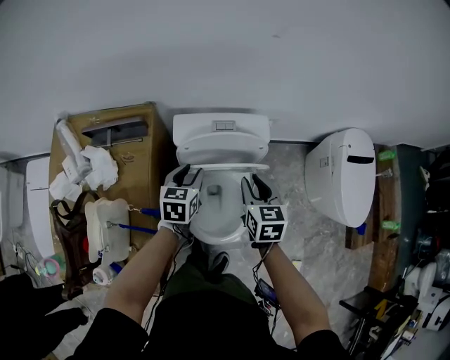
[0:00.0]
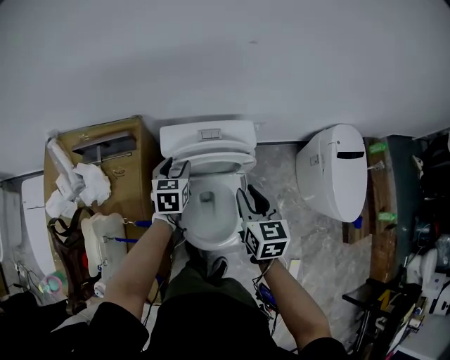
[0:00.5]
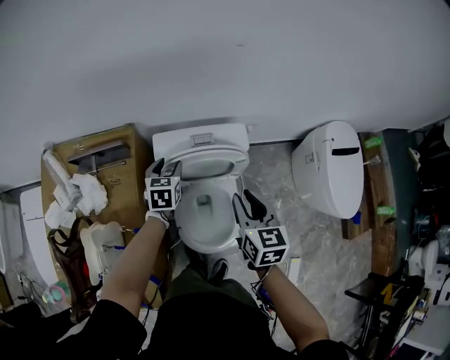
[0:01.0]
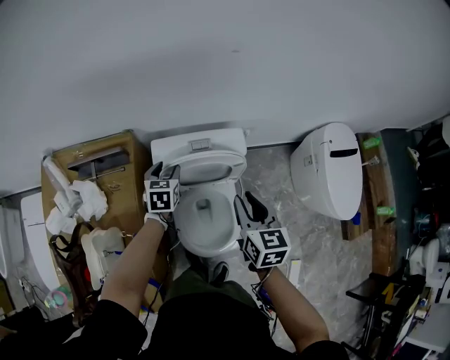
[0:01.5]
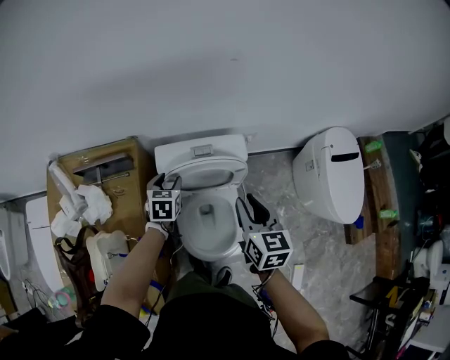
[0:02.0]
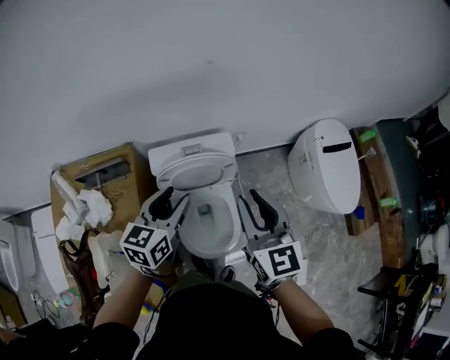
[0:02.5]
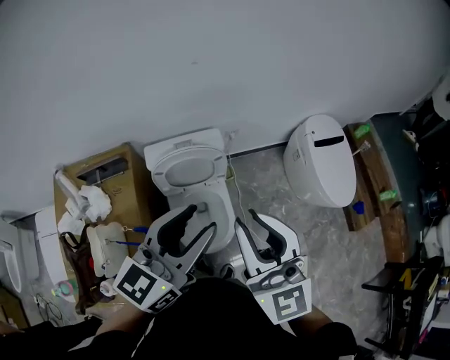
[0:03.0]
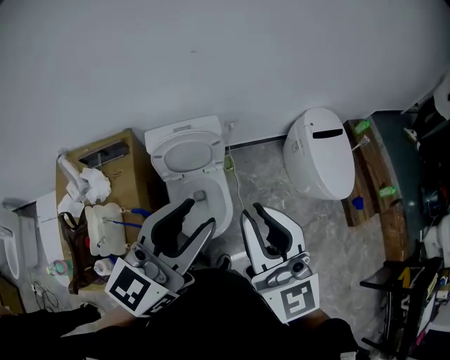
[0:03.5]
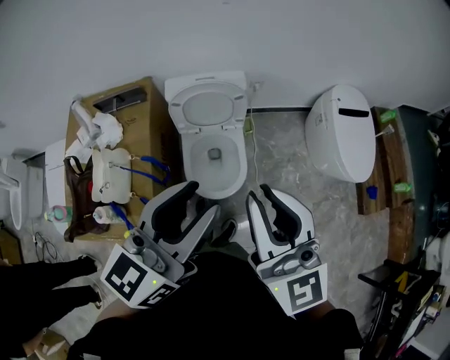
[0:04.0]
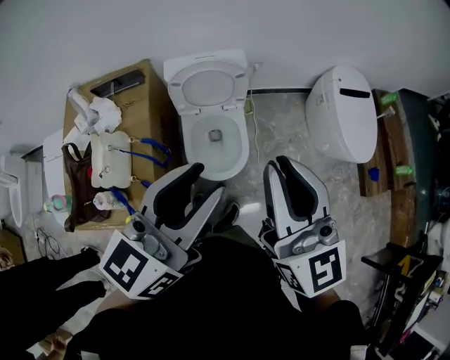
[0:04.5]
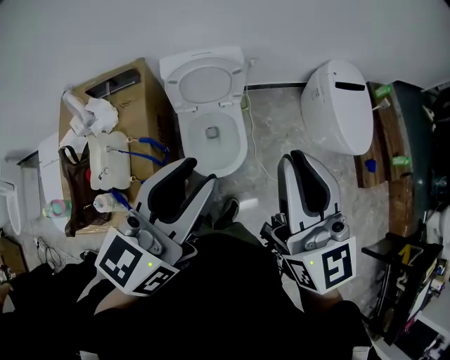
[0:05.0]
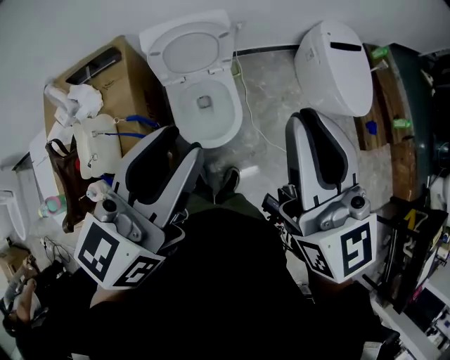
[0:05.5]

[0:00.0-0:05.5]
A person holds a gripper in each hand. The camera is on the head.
0:00.0 to 0:02.0: The left gripper travels forward by roughly 5 cm; the right gripper goes roughly 10 cm upward.
0:02.0 to 0:03.5: The left gripper goes roughly 60 cm upward, backward and to the right, and angles its fingers upward, by some 50 degrees, while the right gripper shifts roughly 35 cm upward and backward, and tips its fingers upward by roughly 40 degrees.
0:03.5 to 0:05.5: The right gripper is displaced backward by approximately 5 cm, while the left gripper shifts about 10 cm backward and downward.

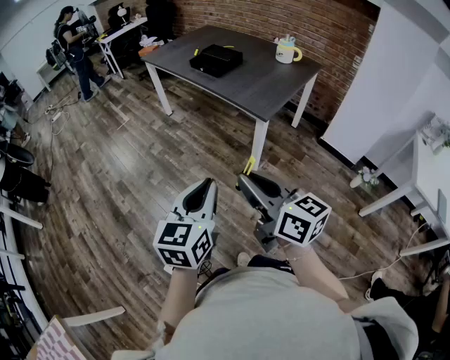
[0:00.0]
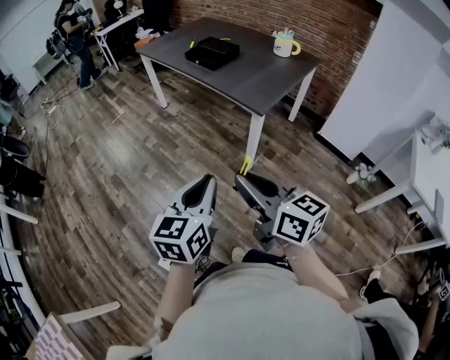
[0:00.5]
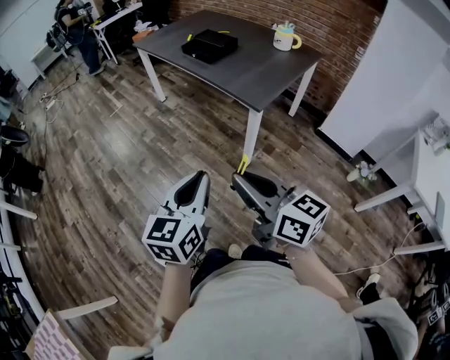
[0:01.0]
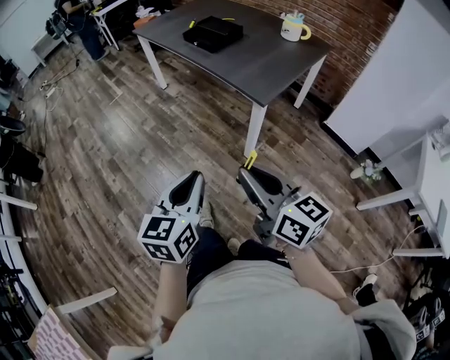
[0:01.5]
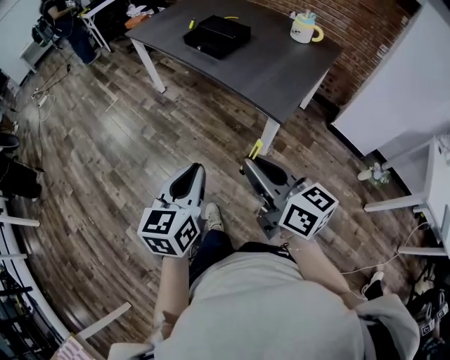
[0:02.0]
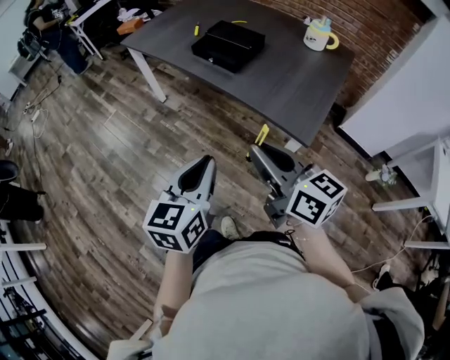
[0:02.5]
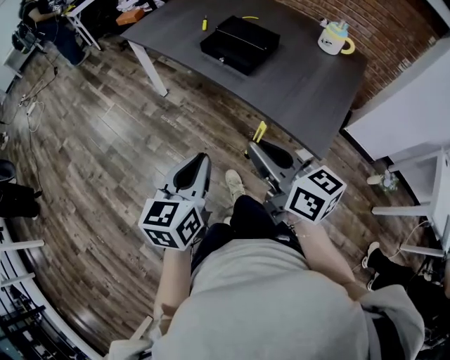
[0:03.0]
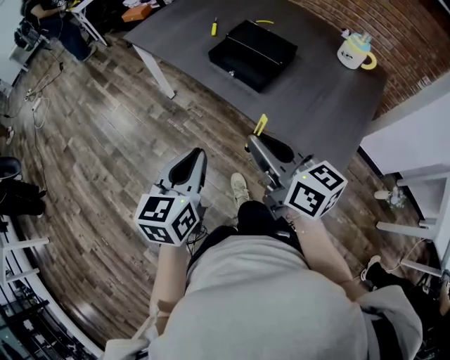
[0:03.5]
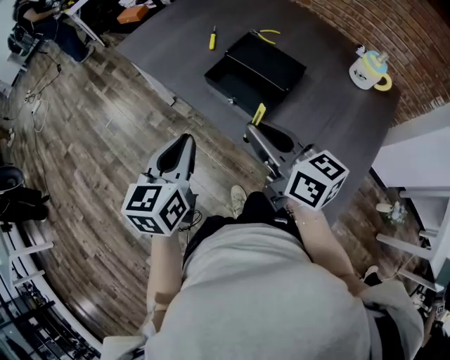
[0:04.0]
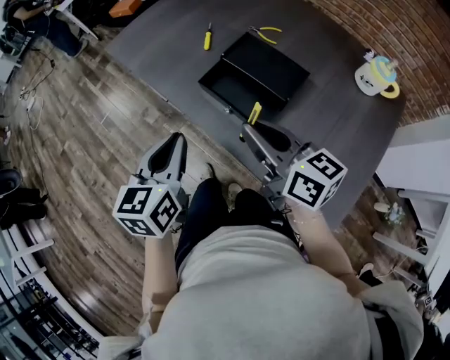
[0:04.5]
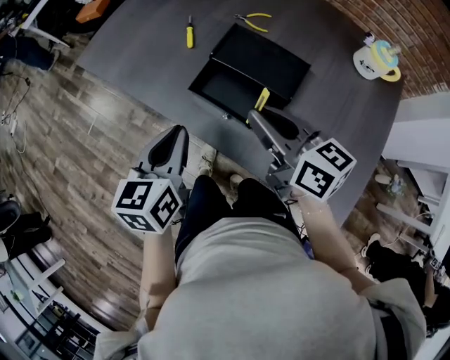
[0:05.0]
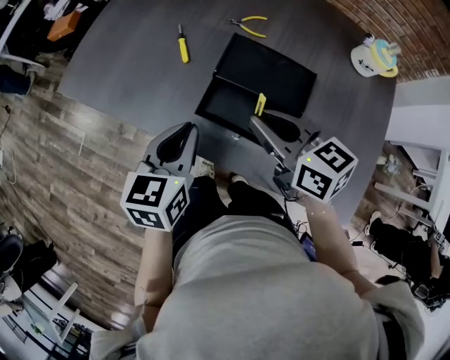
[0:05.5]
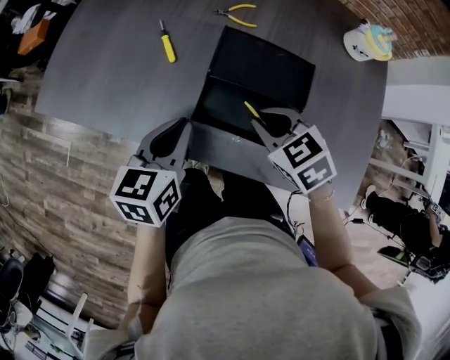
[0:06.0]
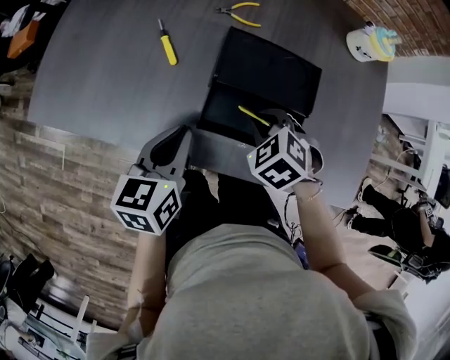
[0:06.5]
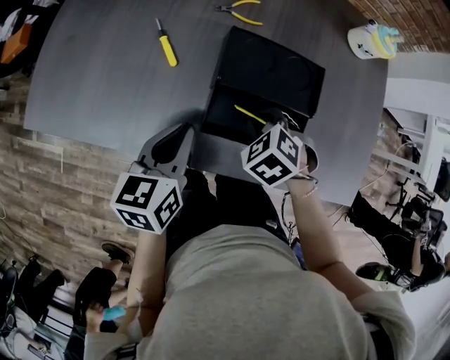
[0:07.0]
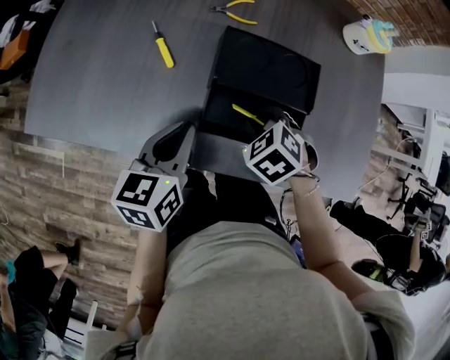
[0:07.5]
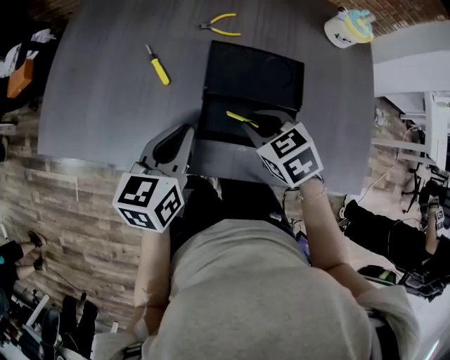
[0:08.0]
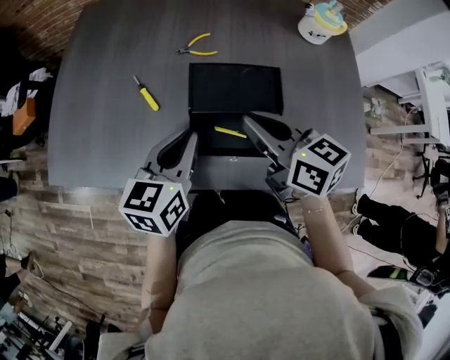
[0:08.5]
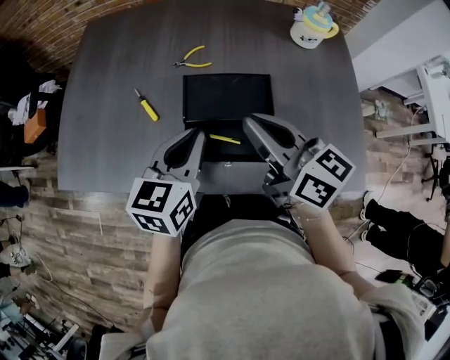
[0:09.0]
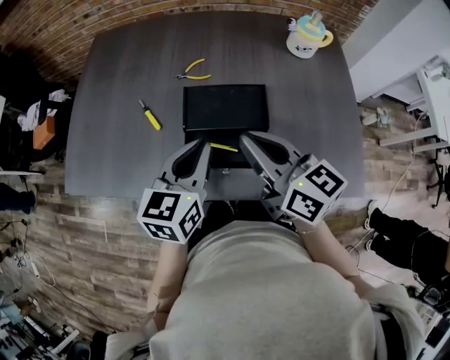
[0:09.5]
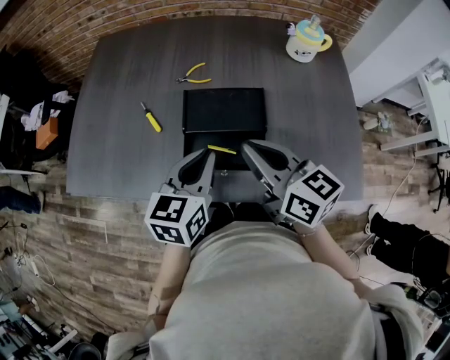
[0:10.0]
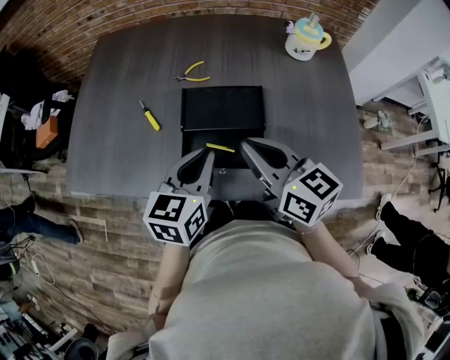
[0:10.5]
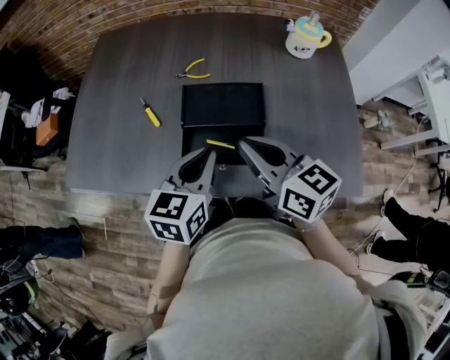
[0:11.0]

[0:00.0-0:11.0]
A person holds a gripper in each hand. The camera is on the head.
0:00.0 to 0:02.0: Both grippers travel together forward, roughly 20 cm.
0:02.0 to 0:03.5: The two grippers go about 35 cm forward.
0:03.5 to 0:05.5: Both grippers move forward, some 35 cm. The left gripper rotates roughly 20 degrees.
0:05.5 to 0:07.5: The left gripper shifts by approximately 10 cm. Meanwhile the right gripper is displaced downward by roughly 15 cm, and angles its fingers downward, by roughly 50 degrees.
0:07.5 to 0:09.0: The left gripper shifts some 15 cm upward and to the right. The right gripper shifts approximately 25 cm upward, and angles its fingers upward, by approximately 70 degrees.
0:09.0 to 0:11.0: The right gripper moves approximately 5 cm. Meanwhile the left gripper ends up approximately 5 cm from where it was.

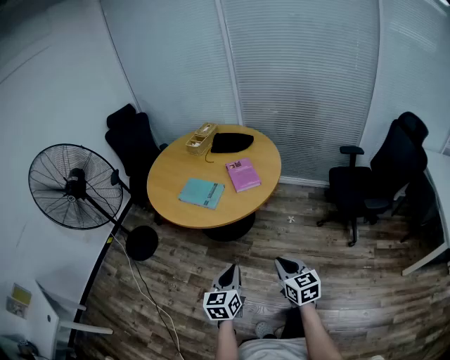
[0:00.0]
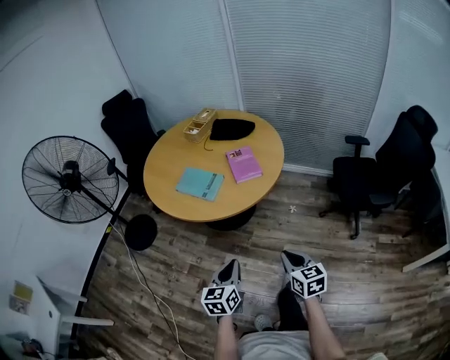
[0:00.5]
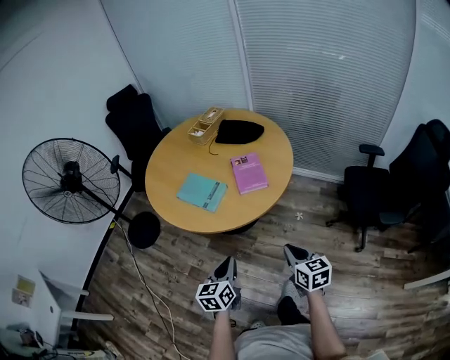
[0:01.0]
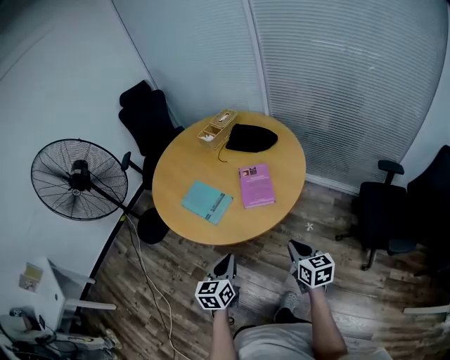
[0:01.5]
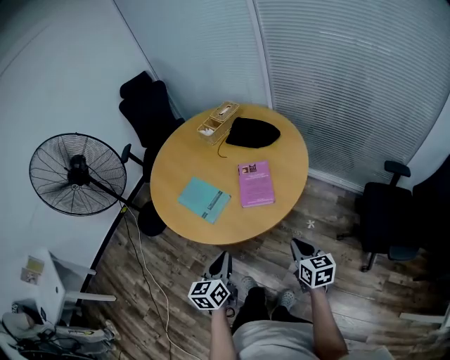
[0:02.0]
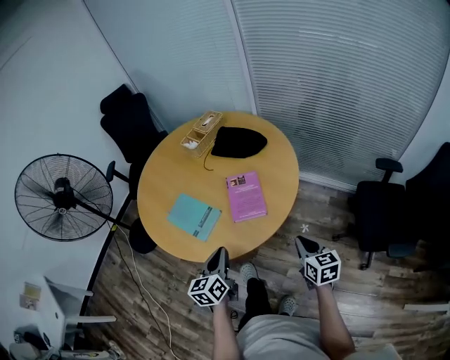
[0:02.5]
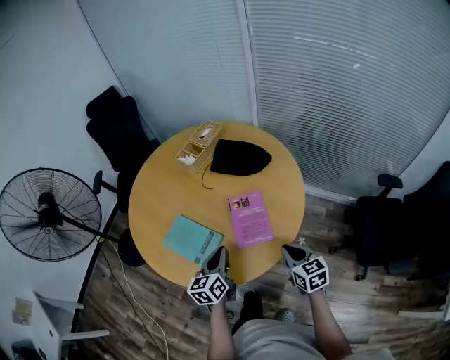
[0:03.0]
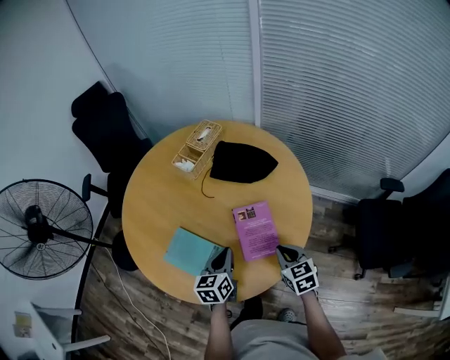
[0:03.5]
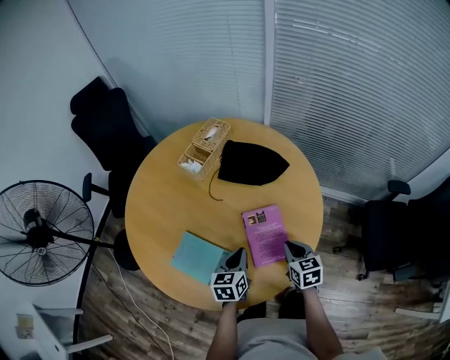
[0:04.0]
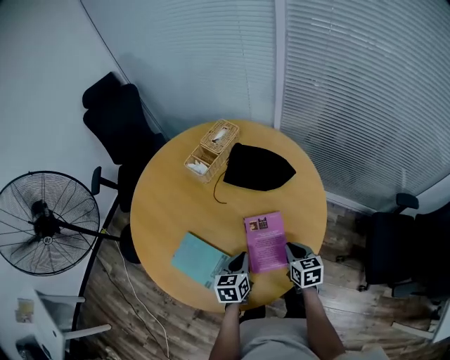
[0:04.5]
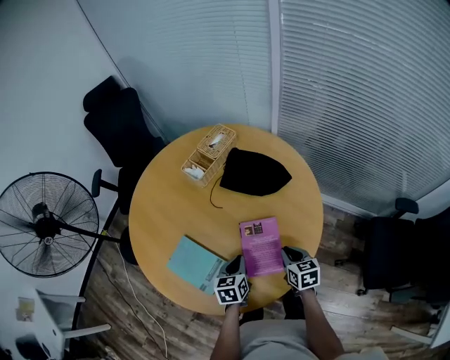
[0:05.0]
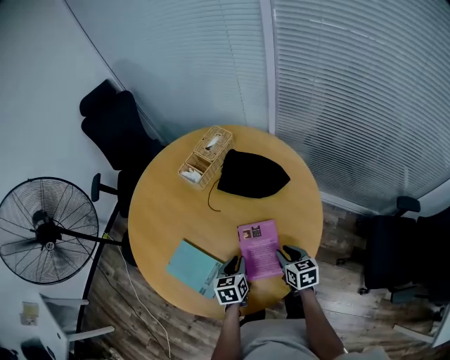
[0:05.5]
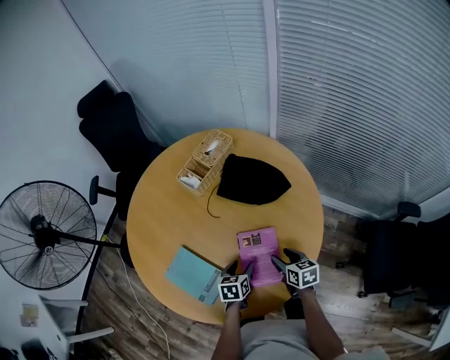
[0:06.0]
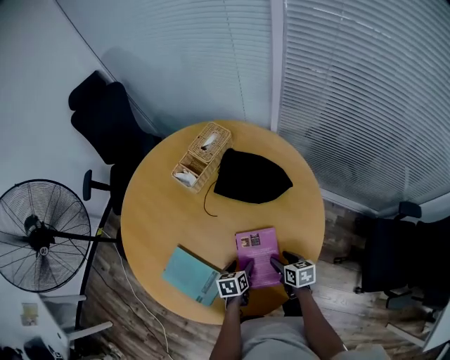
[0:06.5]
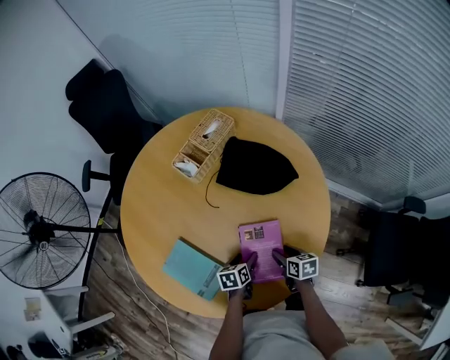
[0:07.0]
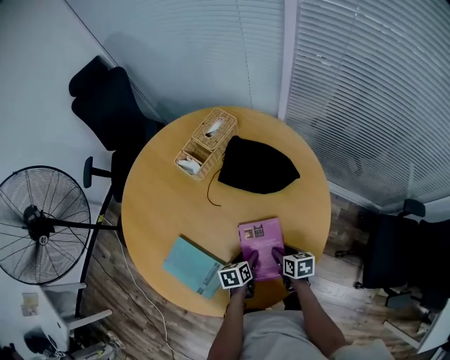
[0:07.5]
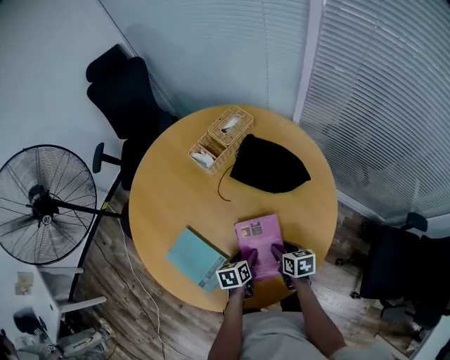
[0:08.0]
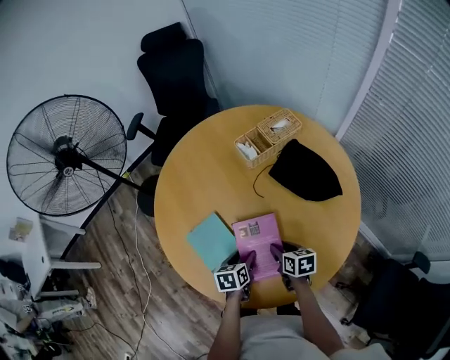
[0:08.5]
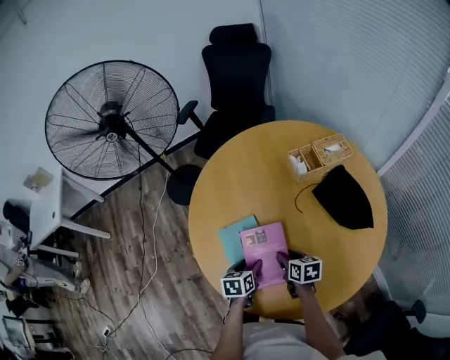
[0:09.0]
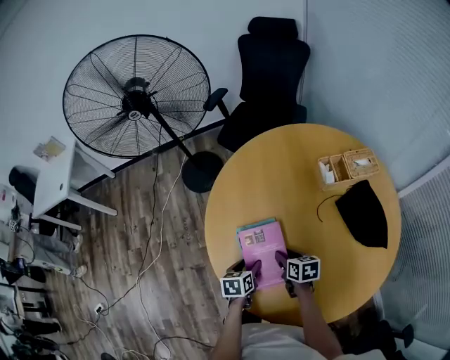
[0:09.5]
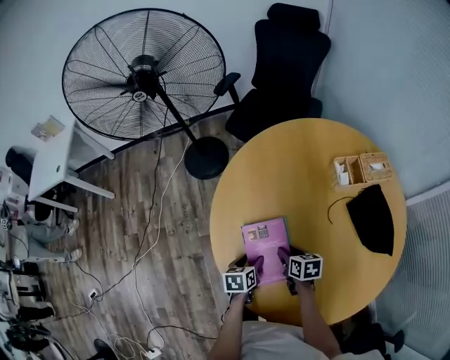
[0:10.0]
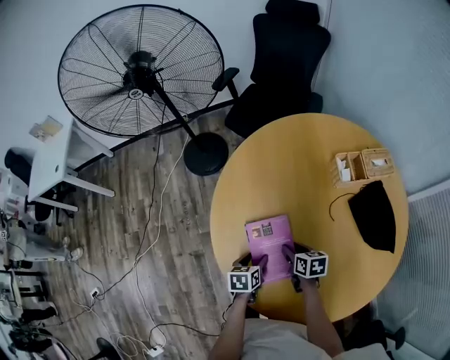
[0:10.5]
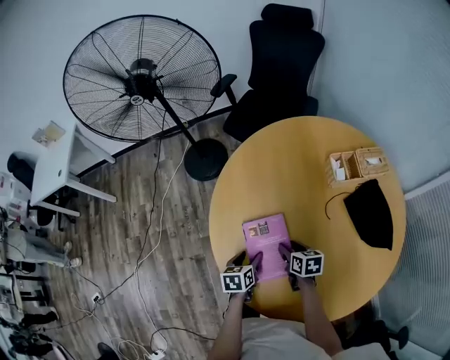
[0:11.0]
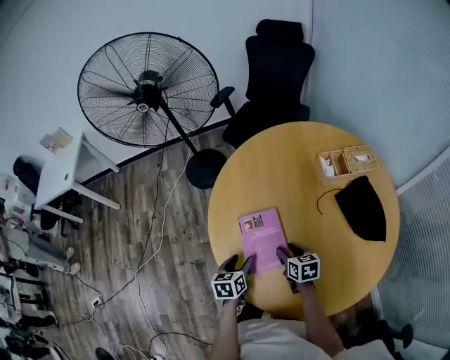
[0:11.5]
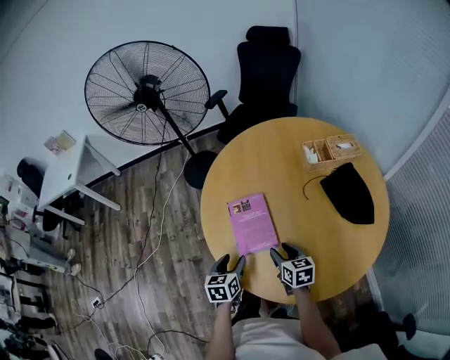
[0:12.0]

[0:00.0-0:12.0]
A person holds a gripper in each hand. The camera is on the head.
0:00.0 to 0:02.0: The left gripper shifts some 25 cm forward, while the right gripper heads forward and to the right, covering roughly 35 cm.
0:02.0 to 0:04.0: Both grippers travel together forward, approximately 30 cm.
0:04.0 to 0:06.0: The right gripper shifts some 10 cm forward and downward, and opens up, while the left gripper is displaced downward by approximately 10 cm, and opens its fingers.
0:06.0 to 0:08.0: The right gripper shifts by approximately 5 cm.
0:08.0 to 0:10.0: The left gripper shifts by approximately 25 cm, and turns by some 30 degrees. The right gripper moves roughly 30 cm, and changes its angle by some 40 degrees.
0:10.0 to 0:12.0: The two grippers go some 15 cm backward and upward. The left gripper rotates roughly 20 degrees.
